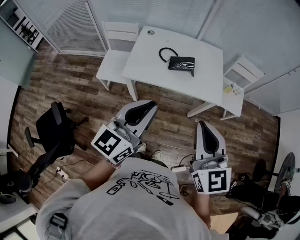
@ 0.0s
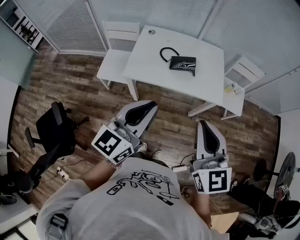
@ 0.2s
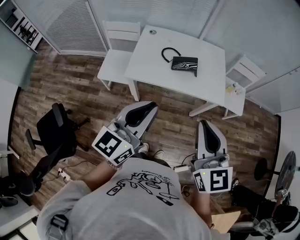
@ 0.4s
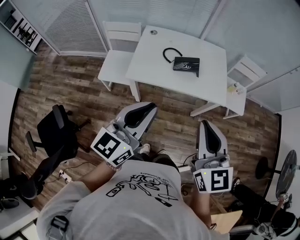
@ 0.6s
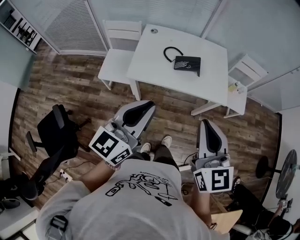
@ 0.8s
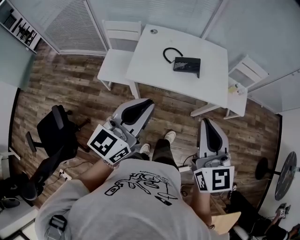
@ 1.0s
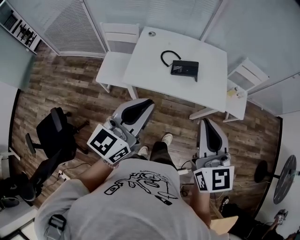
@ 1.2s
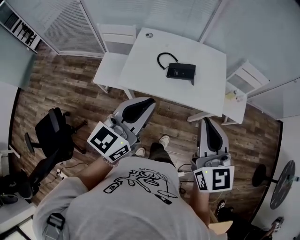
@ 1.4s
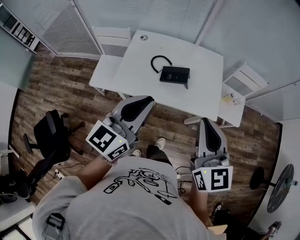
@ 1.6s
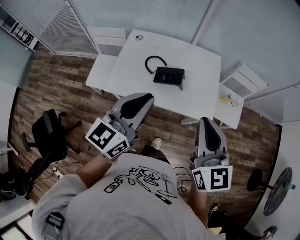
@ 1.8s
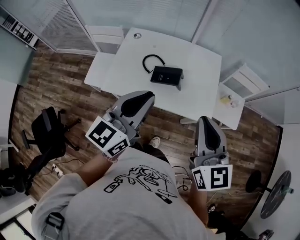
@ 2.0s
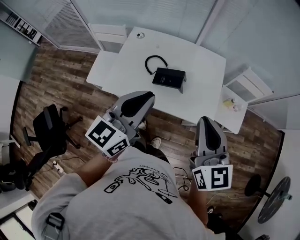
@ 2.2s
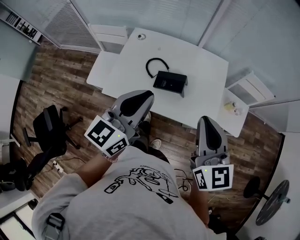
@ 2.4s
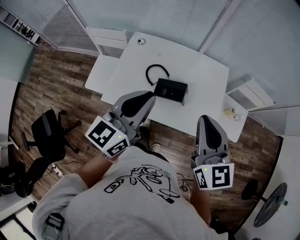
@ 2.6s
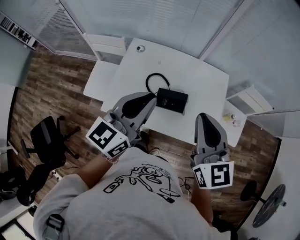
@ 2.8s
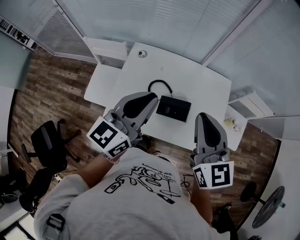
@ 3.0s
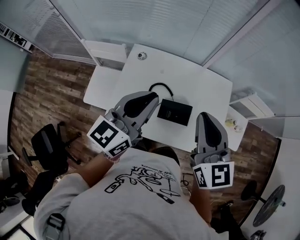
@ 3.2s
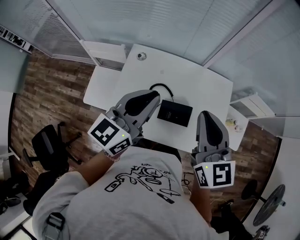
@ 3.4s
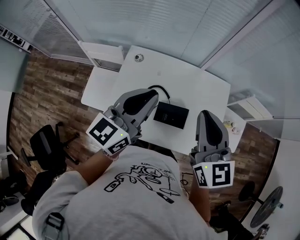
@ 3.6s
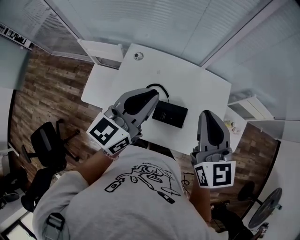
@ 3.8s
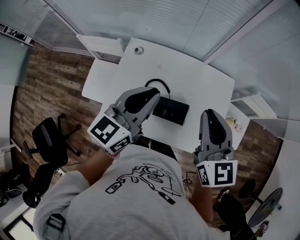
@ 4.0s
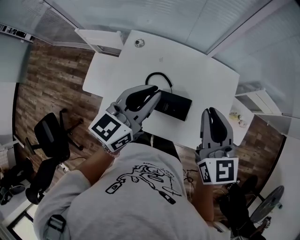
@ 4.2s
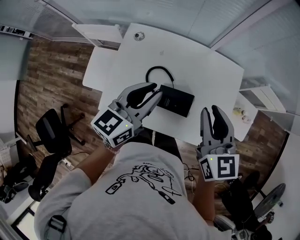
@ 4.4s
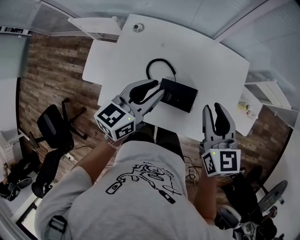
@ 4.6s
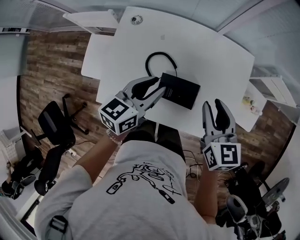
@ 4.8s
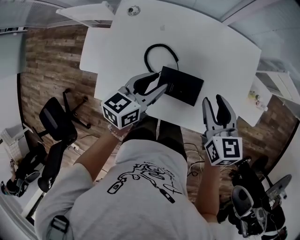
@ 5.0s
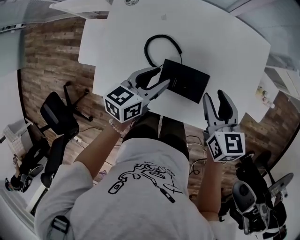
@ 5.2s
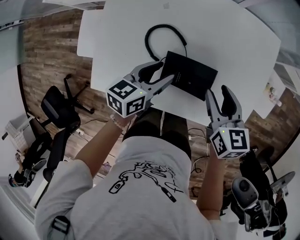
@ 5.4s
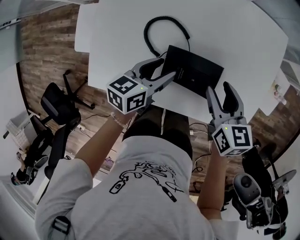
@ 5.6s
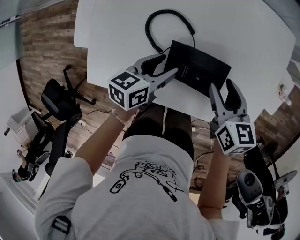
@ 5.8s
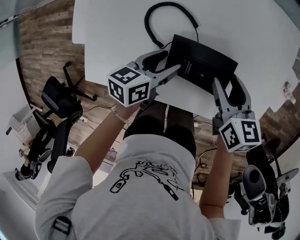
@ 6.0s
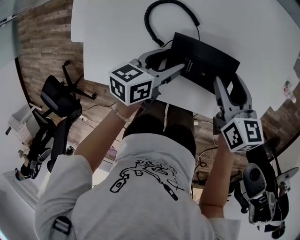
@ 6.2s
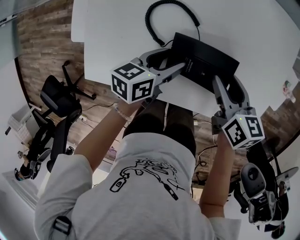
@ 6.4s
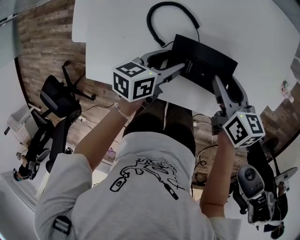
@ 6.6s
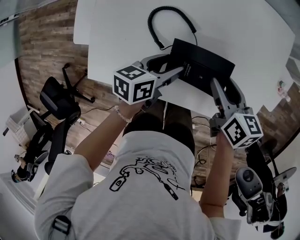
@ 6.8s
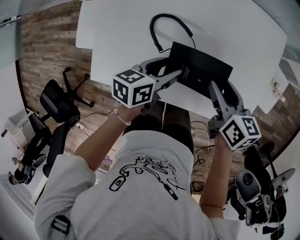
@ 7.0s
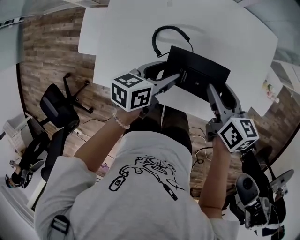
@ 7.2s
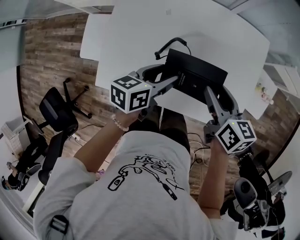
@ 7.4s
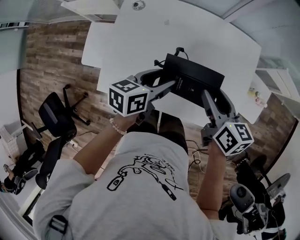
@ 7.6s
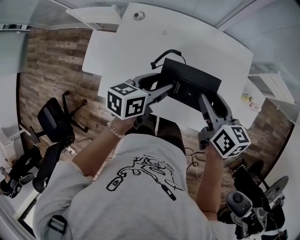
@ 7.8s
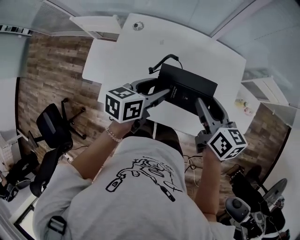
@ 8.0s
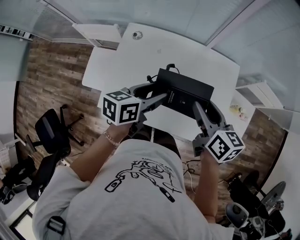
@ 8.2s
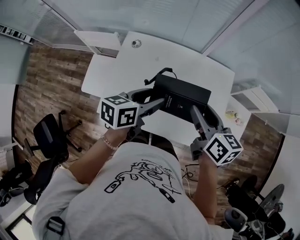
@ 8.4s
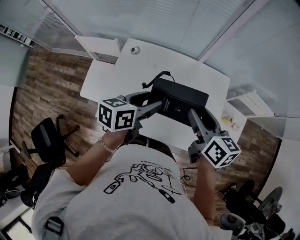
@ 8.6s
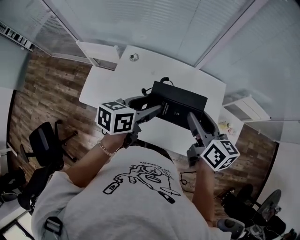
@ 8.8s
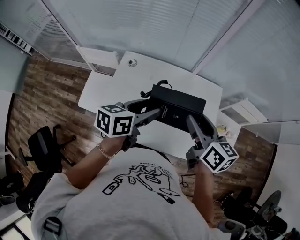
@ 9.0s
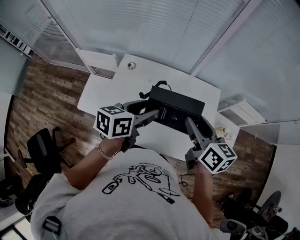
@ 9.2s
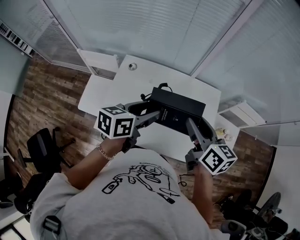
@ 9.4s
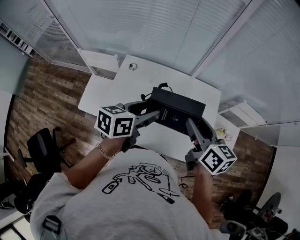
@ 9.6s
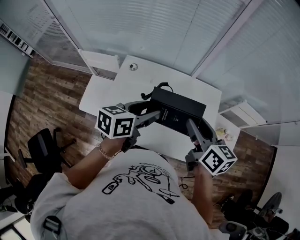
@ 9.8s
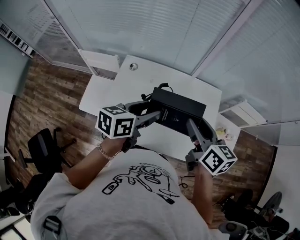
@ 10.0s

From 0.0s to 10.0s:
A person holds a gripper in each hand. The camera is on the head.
From 0.0s to 1.4s: The grippers both shift forward by about 10 cm.
From 1.4s to 2.8s: The two grippers go about 25 cm forward.
From 2.8s to 4.2s: The two grippers go approximately 15 cm forward and downward.
From 4.2s to 5.8s: Both grippers move downward, some 35 cm. The left gripper rotates some 40 degrees, and opens its fingers; the right gripper turns by some 40 degrees, and opens up.
From 5.8s to 7.2s: Both grippers move upward, approximately 10 cm.
From 7.2s to 8.6s: The two grippers go about 20 cm upward.
From 8.6s to 10.0s: The grippers move only a little.

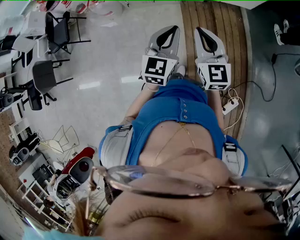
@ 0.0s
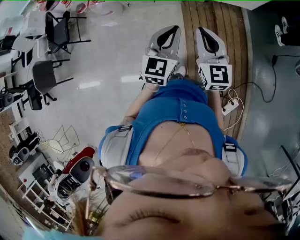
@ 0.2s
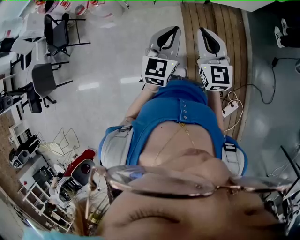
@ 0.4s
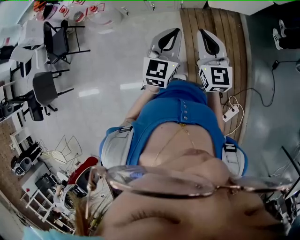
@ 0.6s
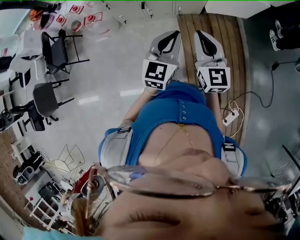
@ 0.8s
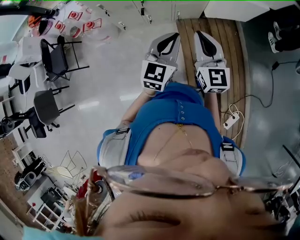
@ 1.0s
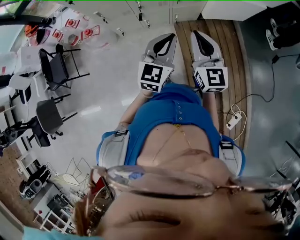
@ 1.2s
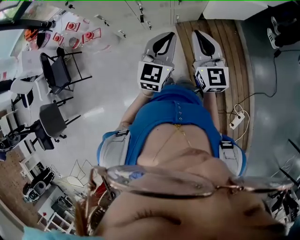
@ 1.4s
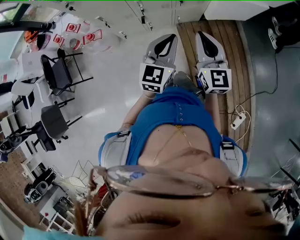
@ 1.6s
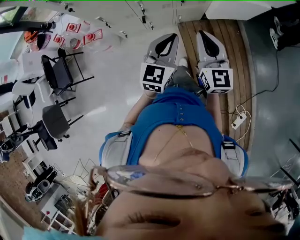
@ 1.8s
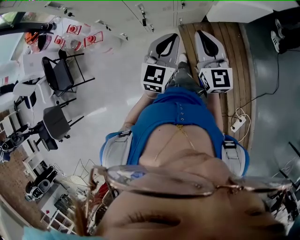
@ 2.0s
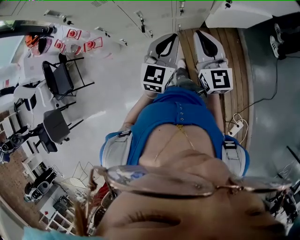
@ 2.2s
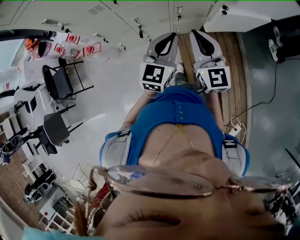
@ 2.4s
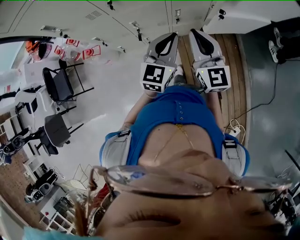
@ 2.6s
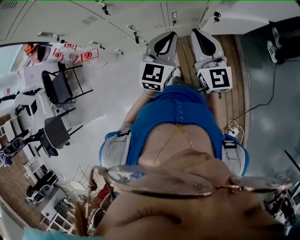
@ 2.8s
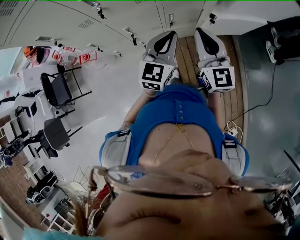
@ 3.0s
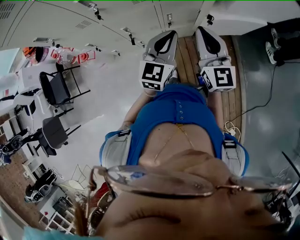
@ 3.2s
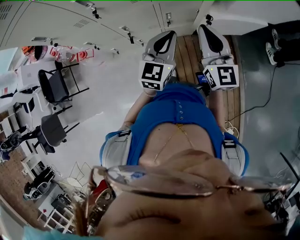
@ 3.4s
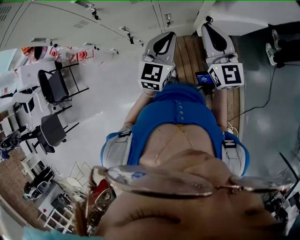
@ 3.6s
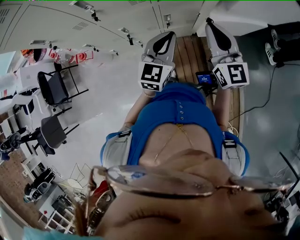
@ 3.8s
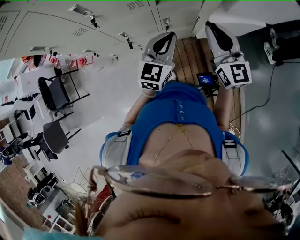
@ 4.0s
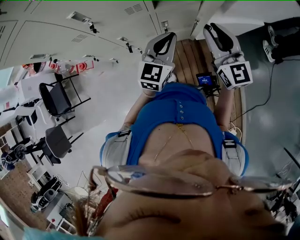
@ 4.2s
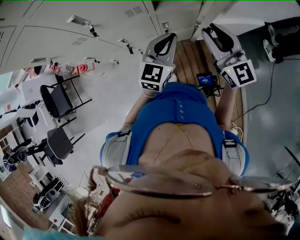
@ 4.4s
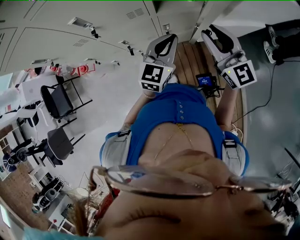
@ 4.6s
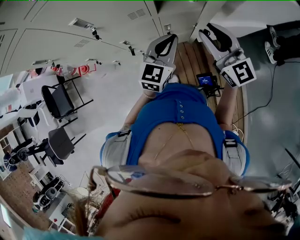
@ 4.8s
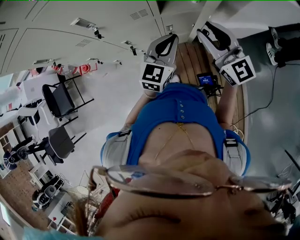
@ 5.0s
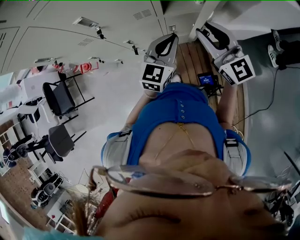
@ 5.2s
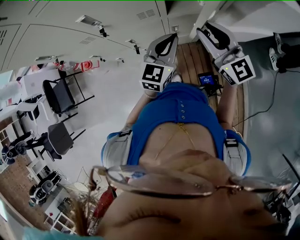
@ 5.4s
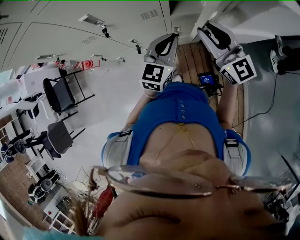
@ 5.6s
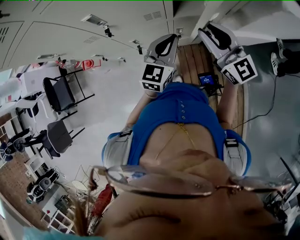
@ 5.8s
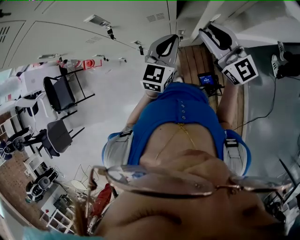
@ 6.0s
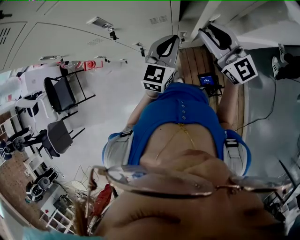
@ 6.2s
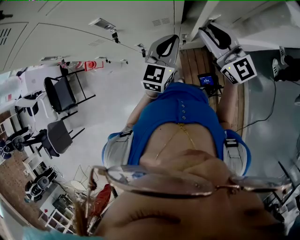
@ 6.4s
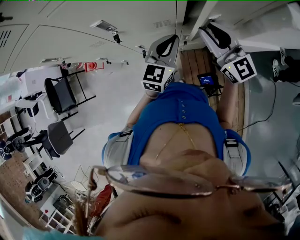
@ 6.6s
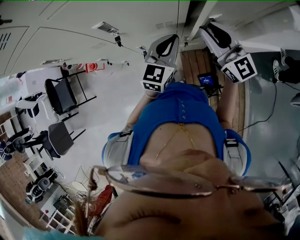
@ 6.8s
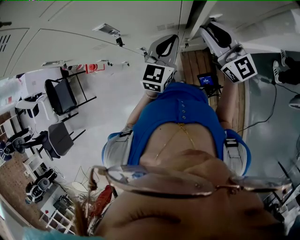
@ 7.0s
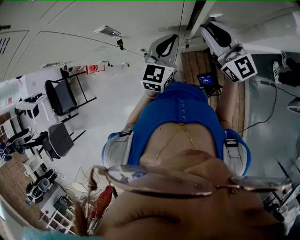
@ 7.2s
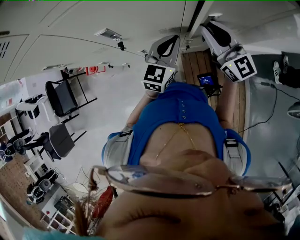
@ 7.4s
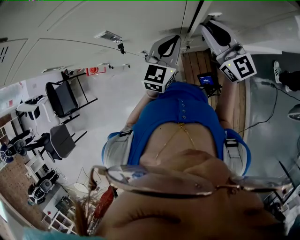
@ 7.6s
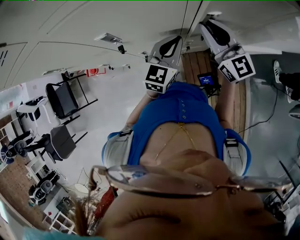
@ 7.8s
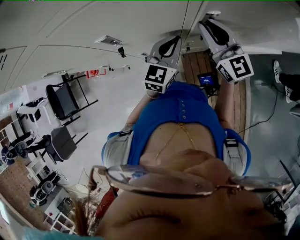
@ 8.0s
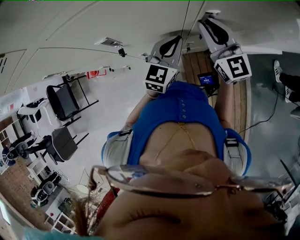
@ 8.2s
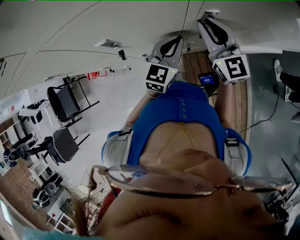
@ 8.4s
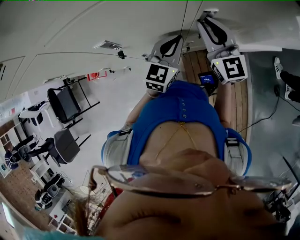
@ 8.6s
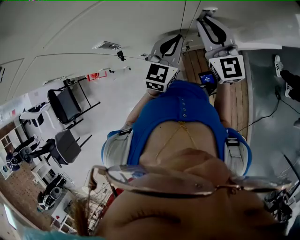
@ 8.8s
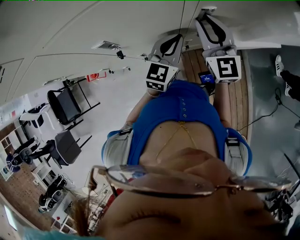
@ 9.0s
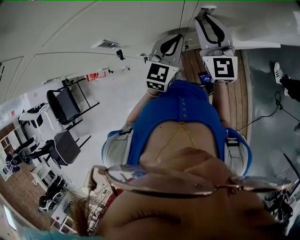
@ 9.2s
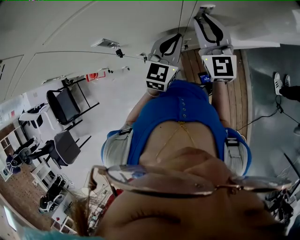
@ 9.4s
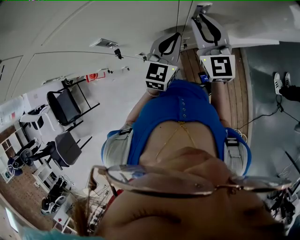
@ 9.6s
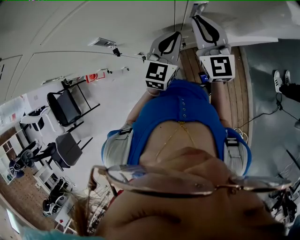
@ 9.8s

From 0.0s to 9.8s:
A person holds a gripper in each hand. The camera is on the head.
From 0.0s to 1.4s: The two grippers go roughly 25 cm forward and to the left.
From 1.4s to 2.8s: The two grippers go roughly 20 cm forward.
From 2.8s to 4.2s: The right gripper heads to the right and forward, covering approximately 10 cm, and opens its fingers. The left gripper moves forward, about 5 cm.
From 4.2s to 5.6s: The right gripper goes some 10 cm to the left and forward. The left gripper heads forward and to the left, covering some 10 cm.
From 5.6s to 7.0s: Both grippers move forward, about 10 cm.
From 7.0s to 8.4s: The right gripper shifts approximately 5 cm forward.
From 8.4s to 9.8s: The grippers make only small movements.

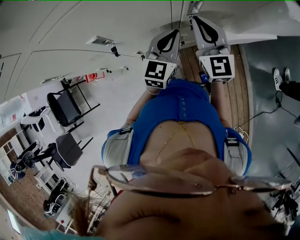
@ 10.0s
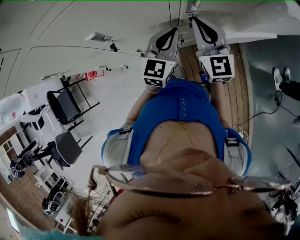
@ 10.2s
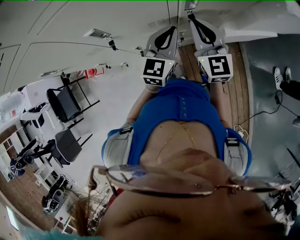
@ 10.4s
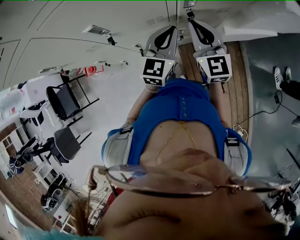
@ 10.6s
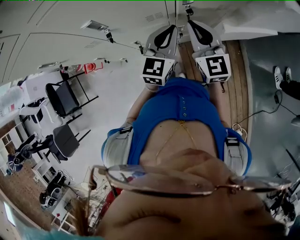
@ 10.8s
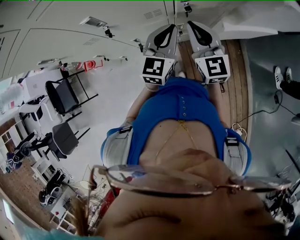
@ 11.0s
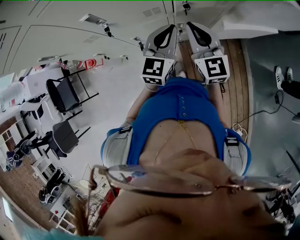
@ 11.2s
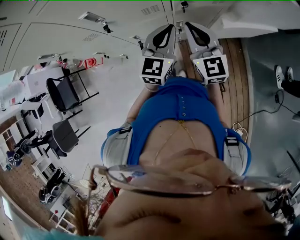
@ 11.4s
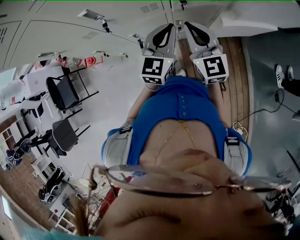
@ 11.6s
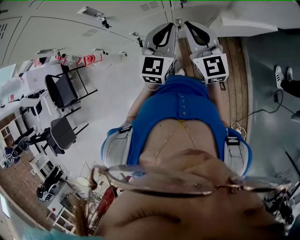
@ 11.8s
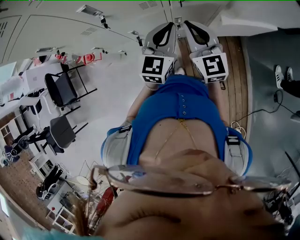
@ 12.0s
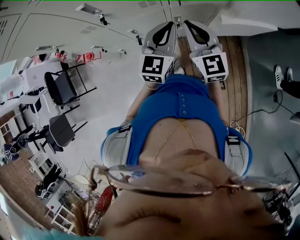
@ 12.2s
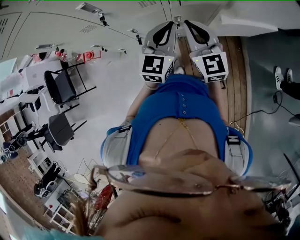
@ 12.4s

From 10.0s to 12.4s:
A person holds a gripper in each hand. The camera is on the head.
From 10.0s to 11.2s: The grippers both shift backward by approximately 10 cm.
From 11.2s to 12.4s: The grippers make only small movements.

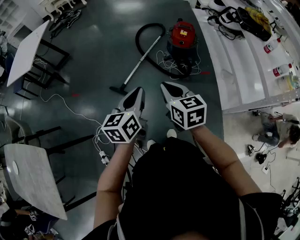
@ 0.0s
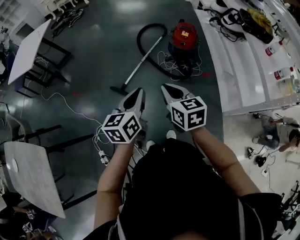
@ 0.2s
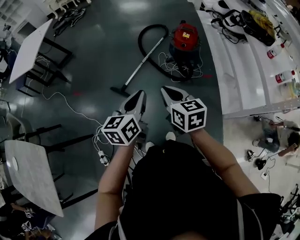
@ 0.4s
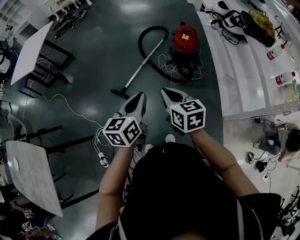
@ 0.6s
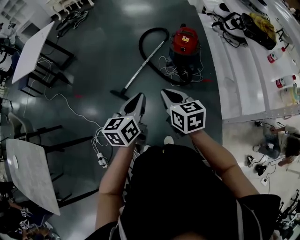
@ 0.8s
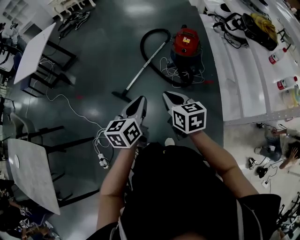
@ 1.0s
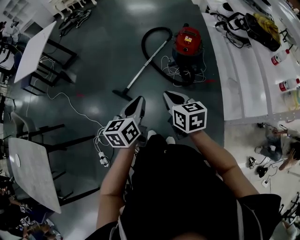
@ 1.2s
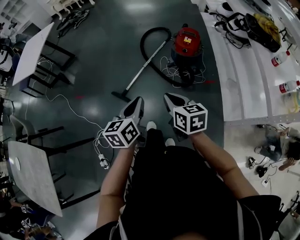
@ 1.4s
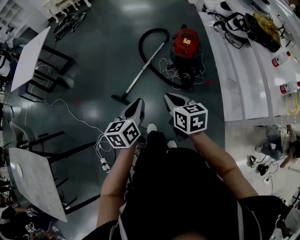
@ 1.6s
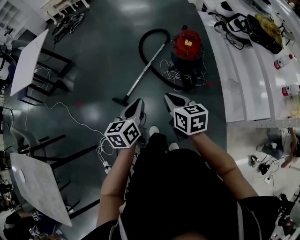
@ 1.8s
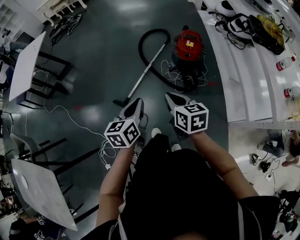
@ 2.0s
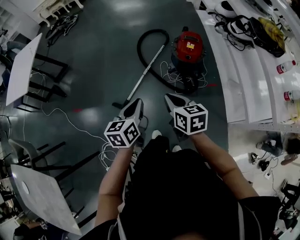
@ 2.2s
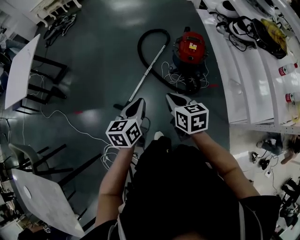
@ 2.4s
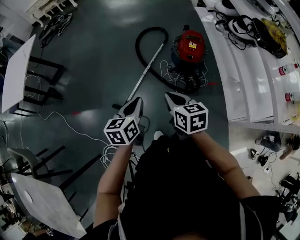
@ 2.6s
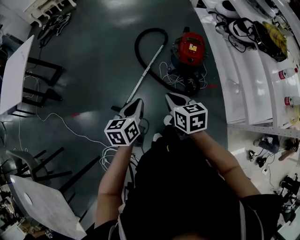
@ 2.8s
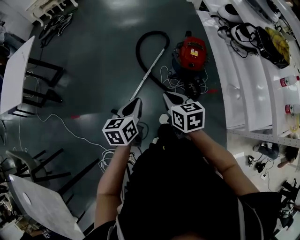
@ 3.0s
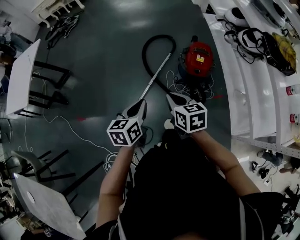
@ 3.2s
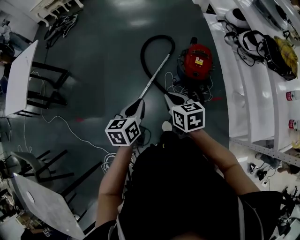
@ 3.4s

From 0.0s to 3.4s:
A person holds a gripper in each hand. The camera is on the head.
From 0.0s to 1.6s: The right gripper is displaced forward and to the right by some 10 cm. The left gripper moves forward and downward, some 10 cm.
From 1.6s to 3.4s: Both grippers move forward, some 30 cm.
